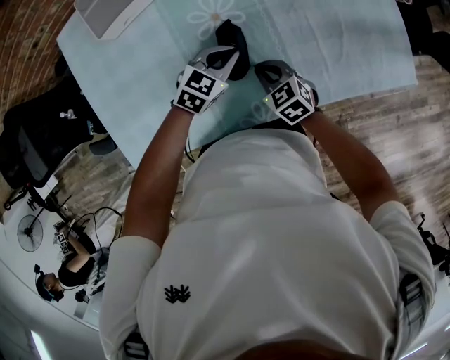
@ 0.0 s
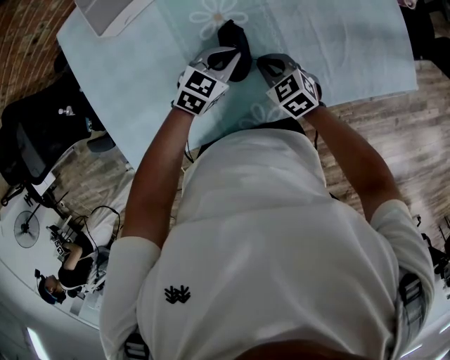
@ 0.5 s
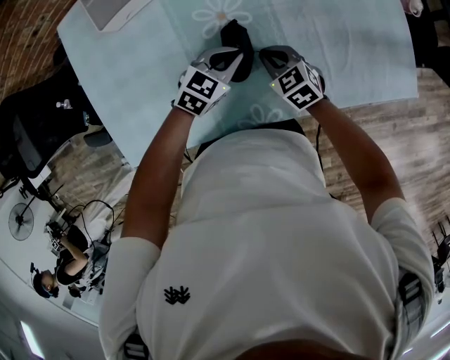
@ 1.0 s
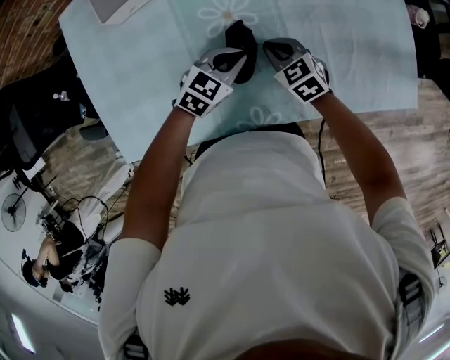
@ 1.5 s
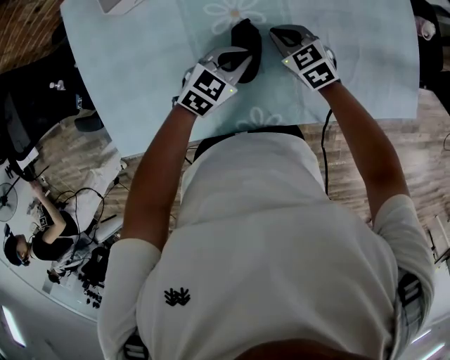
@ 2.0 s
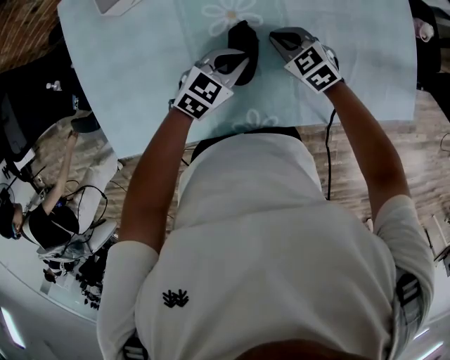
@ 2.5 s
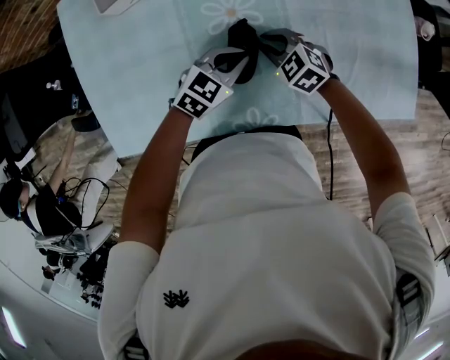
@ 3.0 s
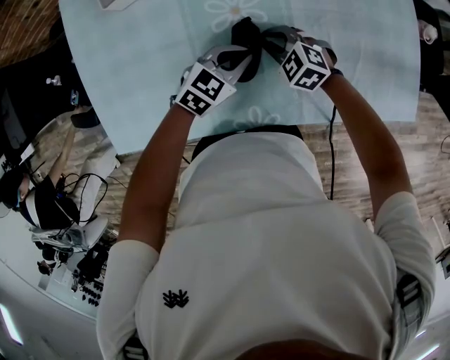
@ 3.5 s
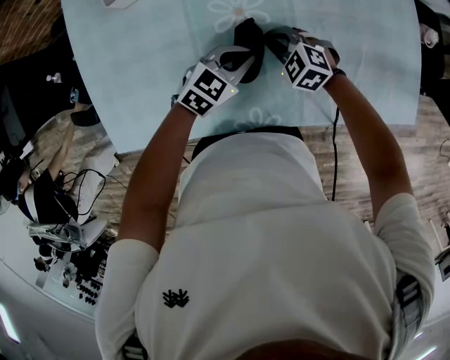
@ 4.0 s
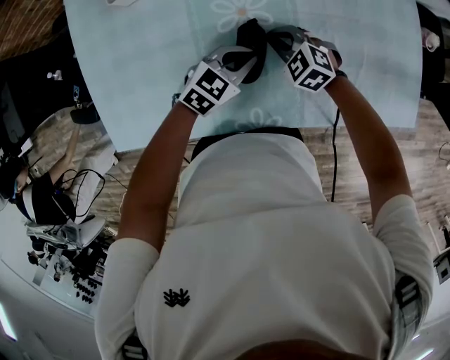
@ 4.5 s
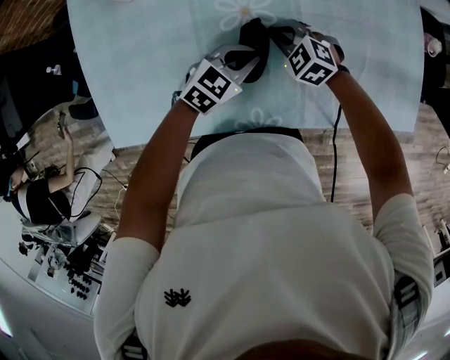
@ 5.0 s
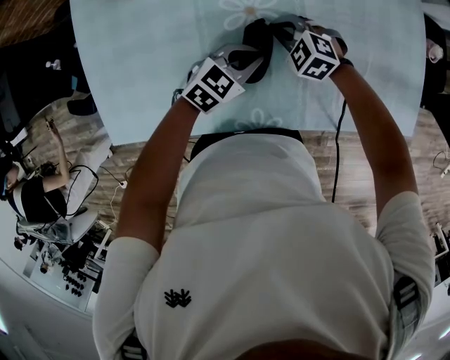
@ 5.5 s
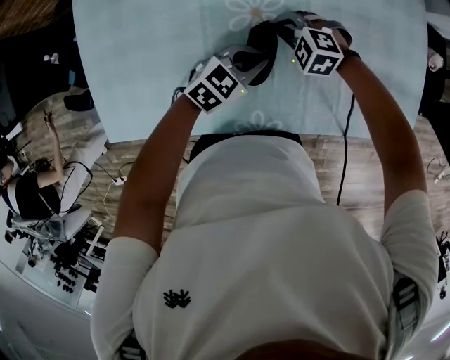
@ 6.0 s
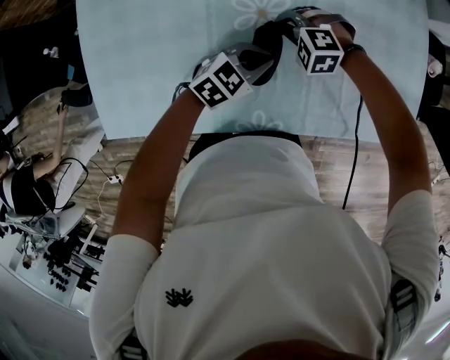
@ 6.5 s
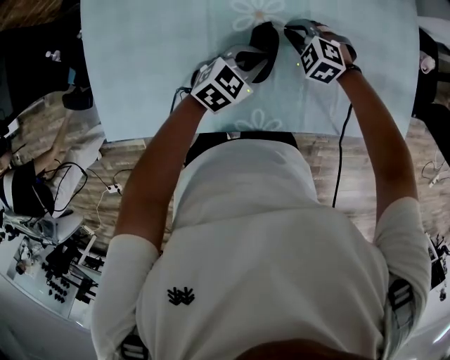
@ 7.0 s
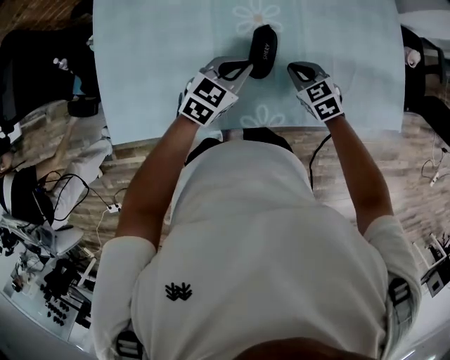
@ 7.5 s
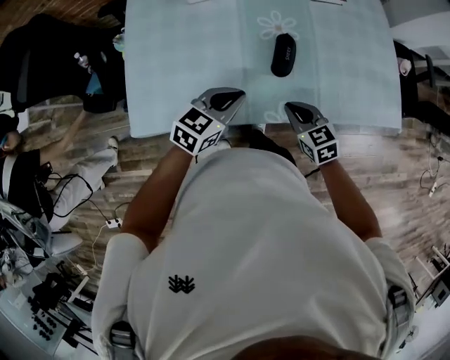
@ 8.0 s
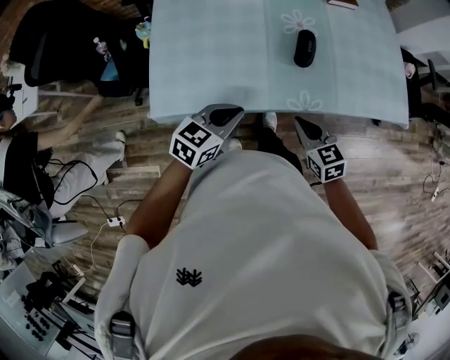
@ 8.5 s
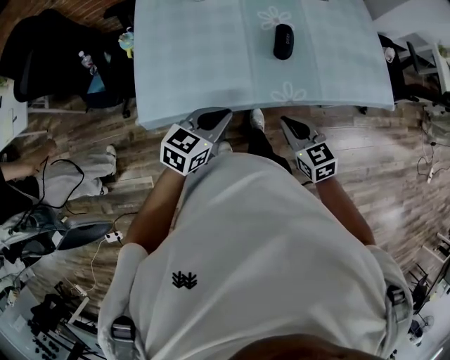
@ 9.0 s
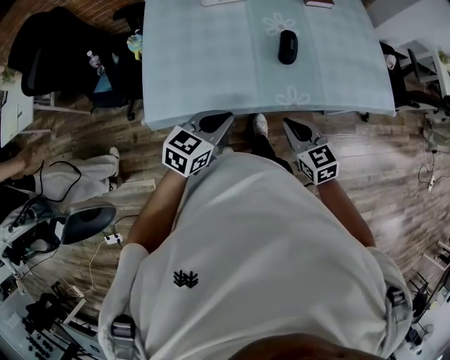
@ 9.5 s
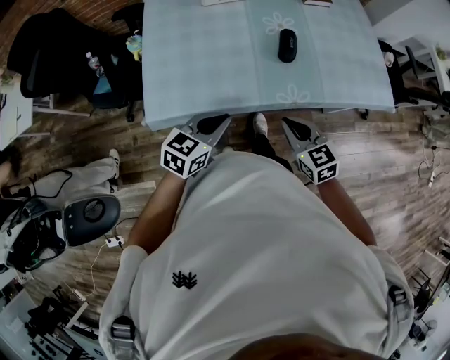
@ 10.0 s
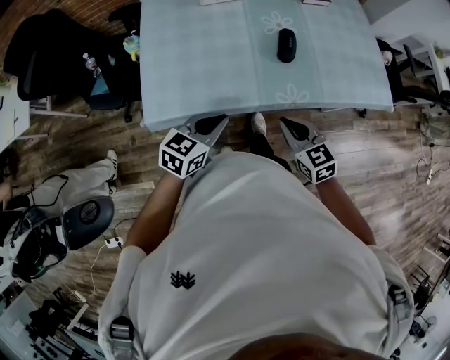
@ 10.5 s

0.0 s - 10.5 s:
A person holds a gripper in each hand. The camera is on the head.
0.0 s - 2.0 s: The right gripper is displaced forward by some 15 cm.
2.0 s - 4.0 s: The right gripper rotates some 30 degrees.
4.0 s - 6.5 s: The right gripper shifts by approximately 5 cm, and changes its angle by roughly 30 degrees.
6.5 s - 8.5 s: The left gripper moves about 40 cm, and turns by some 20 degrees. Meanwhile the right gripper changes place by roughly 40 cm, and rotates around the line of its fingers by some 70 degrees, clockwise from behind.
8.5 s - 10.5 s: The right gripper moves backward, approximately 5 cm, while the left gripper shifts by roughly 5 cm.

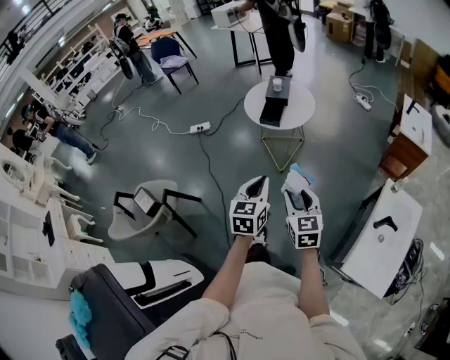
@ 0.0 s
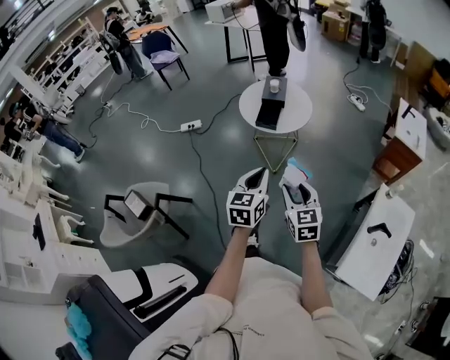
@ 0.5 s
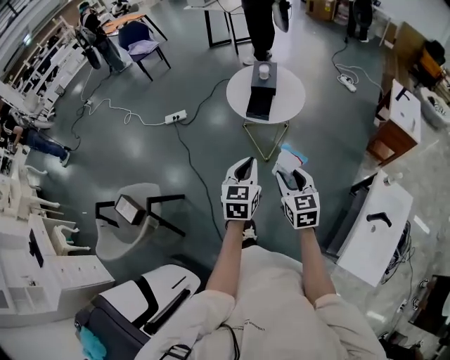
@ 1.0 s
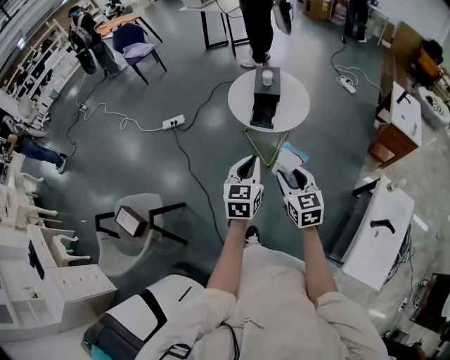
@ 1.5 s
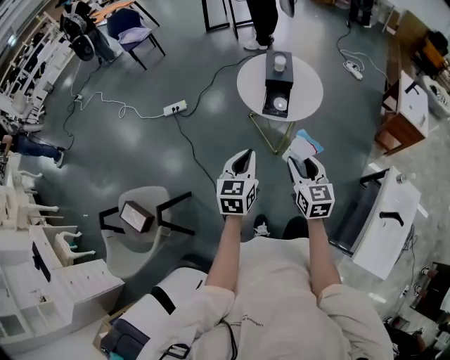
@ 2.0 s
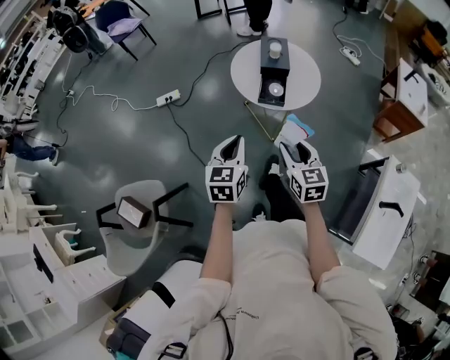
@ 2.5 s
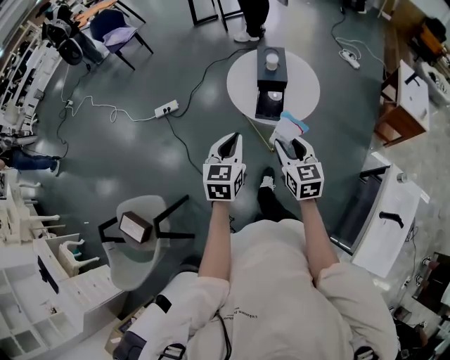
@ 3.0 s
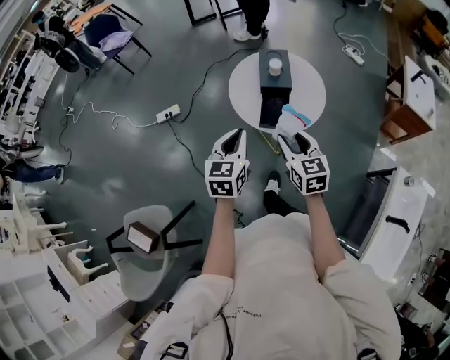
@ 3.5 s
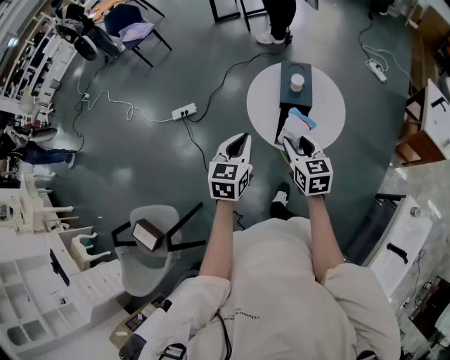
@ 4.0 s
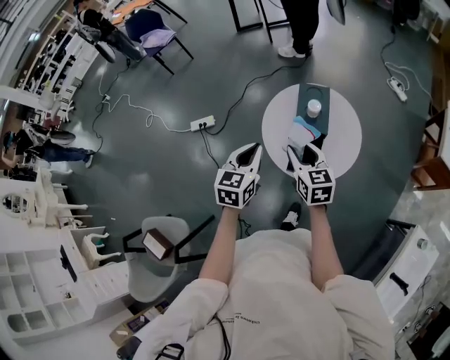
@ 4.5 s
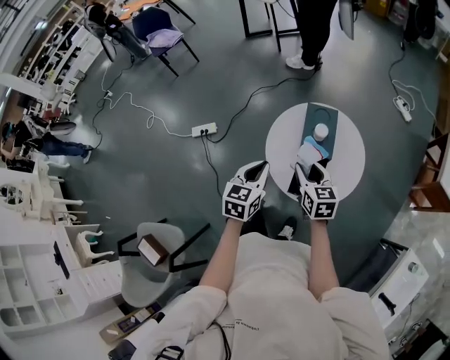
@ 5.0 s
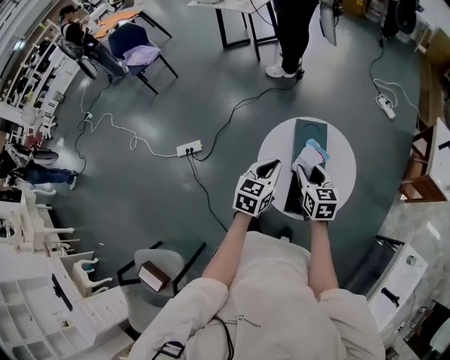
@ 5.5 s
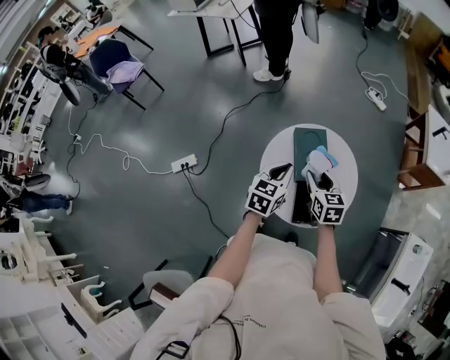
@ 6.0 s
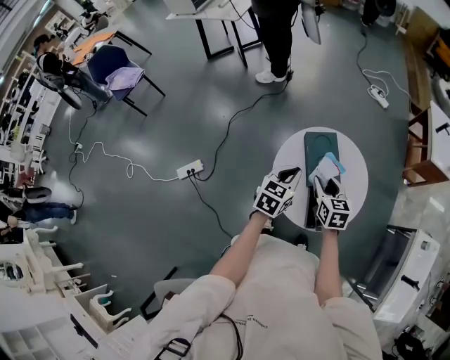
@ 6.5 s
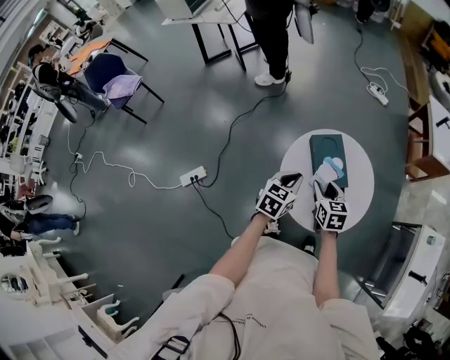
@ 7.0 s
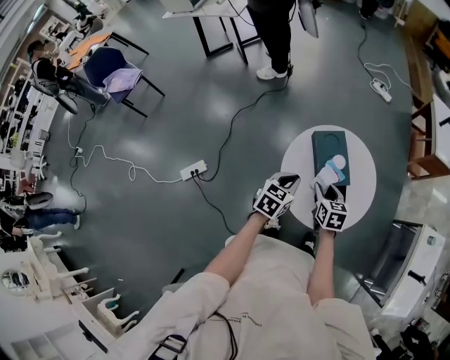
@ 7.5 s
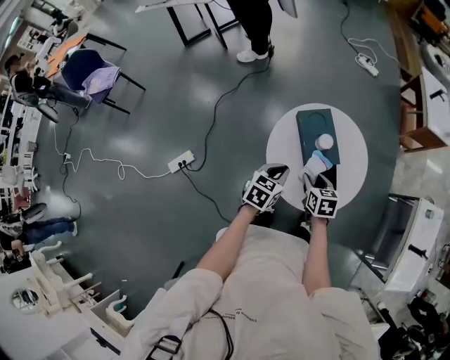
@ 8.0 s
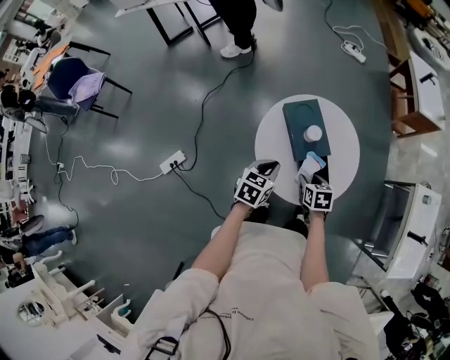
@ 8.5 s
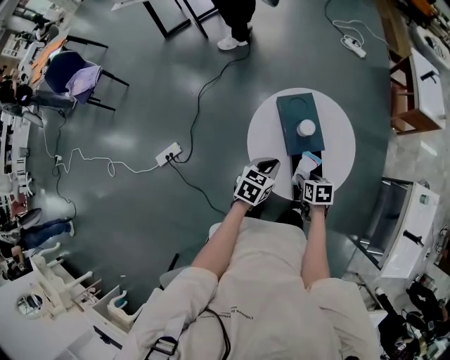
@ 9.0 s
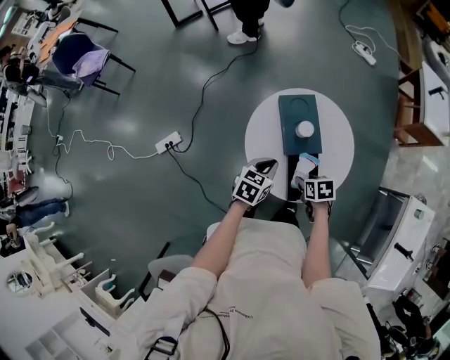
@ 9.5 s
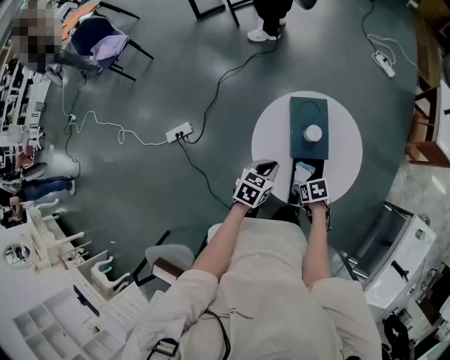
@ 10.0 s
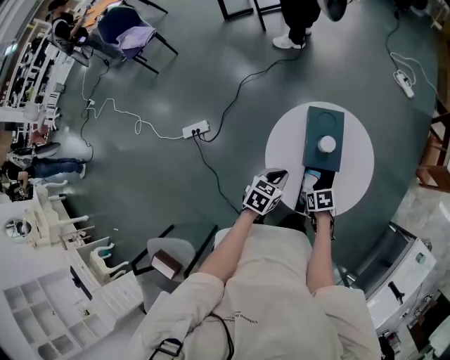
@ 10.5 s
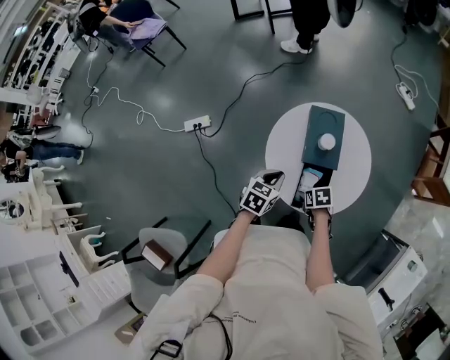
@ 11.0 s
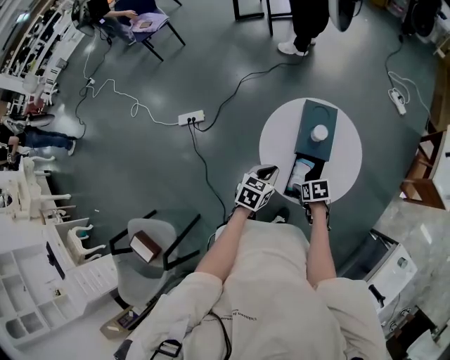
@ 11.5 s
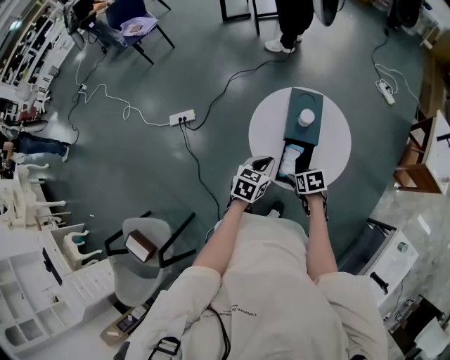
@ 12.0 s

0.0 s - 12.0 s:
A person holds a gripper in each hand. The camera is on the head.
0.0 s - 2.0 s: The two grippers go approximately 30 cm forward and to the left.
2.0 s - 4.0 s: Both grippers travel together forward, approximately 30 cm.
4.0 s - 6.0 s: Both grippers move forward, some 30 cm. The left gripper changes its angle by roughly 30 degrees.
6.0 s - 8.0 s: The left gripper moves downward and to the left, about 10 cm, and swivels some 20 degrees; the right gripper moves downward, approximately 10 cm, and changes its angle by roughly 20 degrees.
8.0 s - 10.0 s: The right gripper goes about 10 cm downward, and changes its angle by about 40 degrees; the left gripper shifts by approximately 10 cm.
10.0 s - 12.0 s: The right gripper heads upward and backward, covering roughly 10 cm; the left gripper moves backward and upward, about 15 cm.

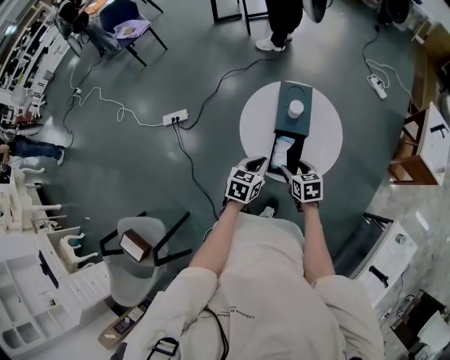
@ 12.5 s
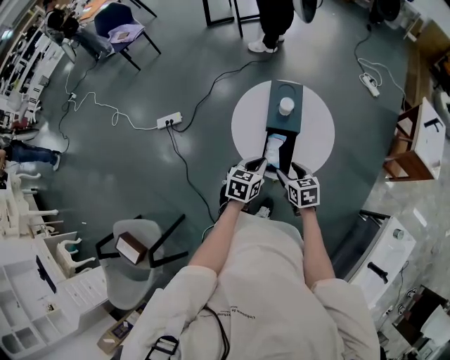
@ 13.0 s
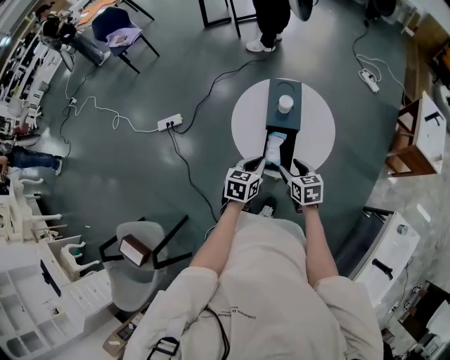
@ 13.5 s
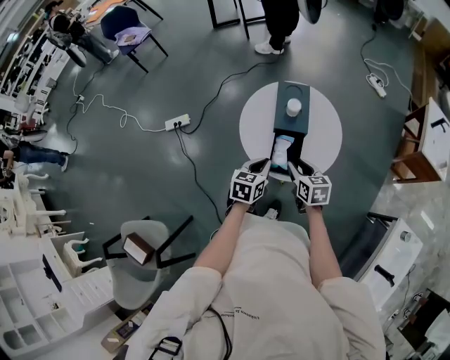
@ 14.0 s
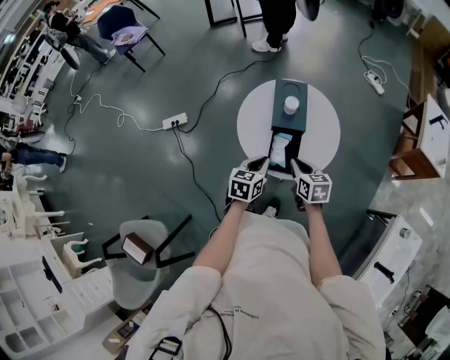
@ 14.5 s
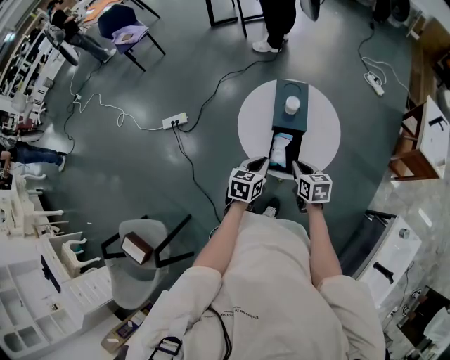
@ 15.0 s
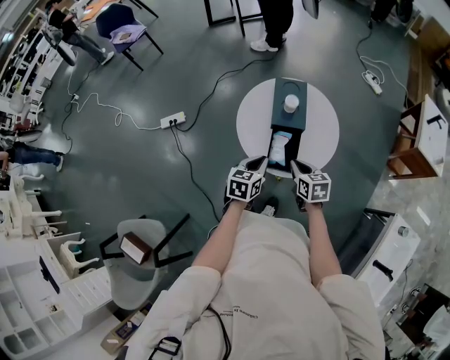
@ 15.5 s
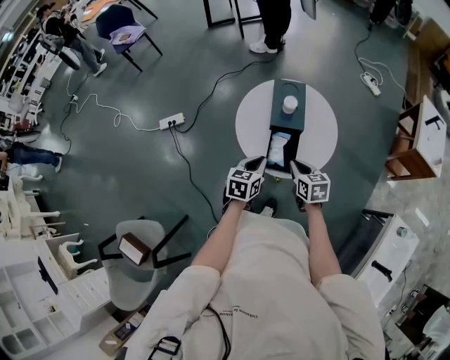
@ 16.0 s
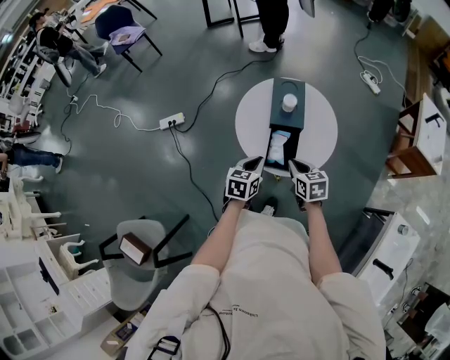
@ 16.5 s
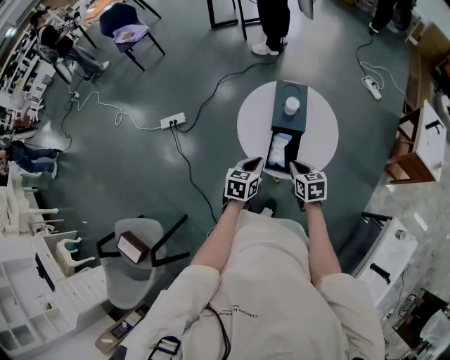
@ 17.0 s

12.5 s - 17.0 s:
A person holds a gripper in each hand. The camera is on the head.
12.5 s - 14.5 s: The right gripper closes its fingers.
14.5 s - 17.0 s: The grippers make only small movements.
